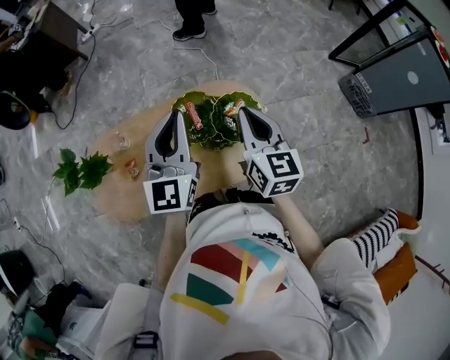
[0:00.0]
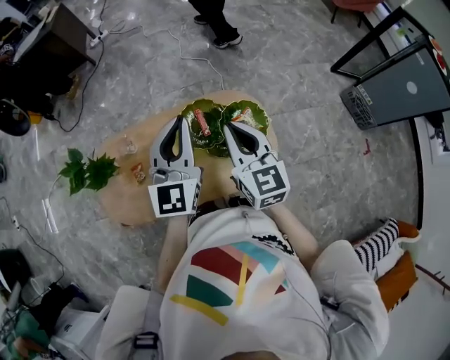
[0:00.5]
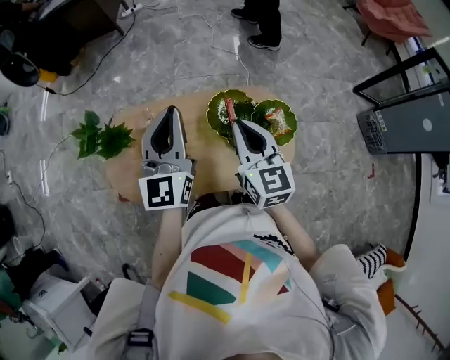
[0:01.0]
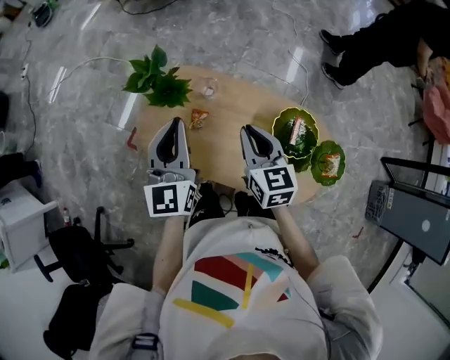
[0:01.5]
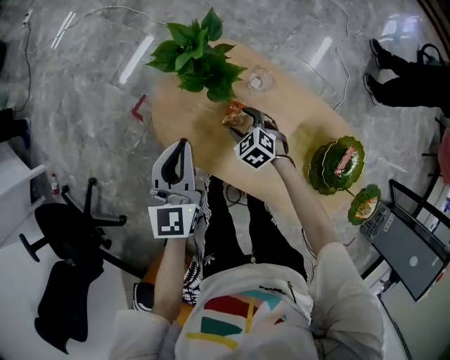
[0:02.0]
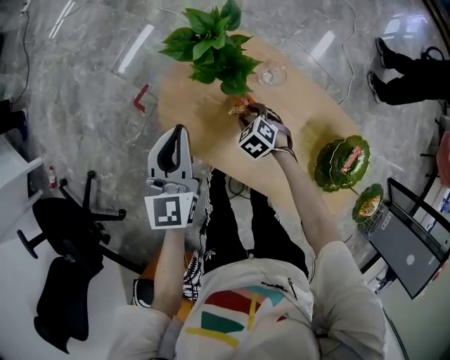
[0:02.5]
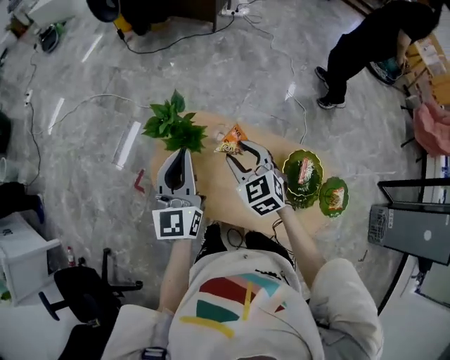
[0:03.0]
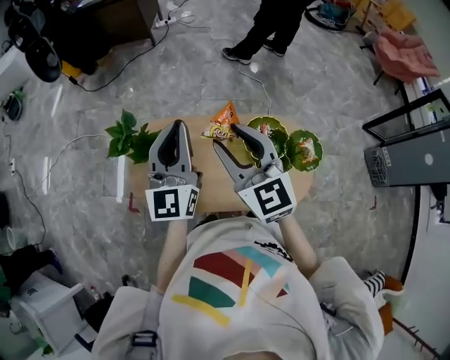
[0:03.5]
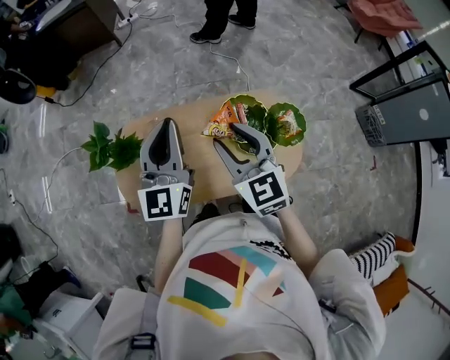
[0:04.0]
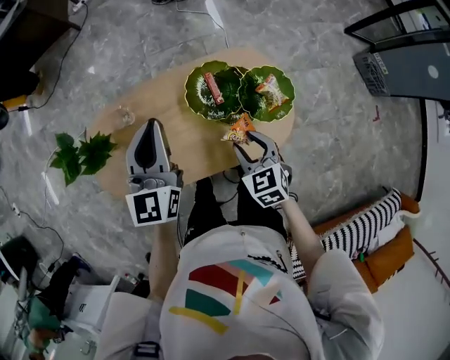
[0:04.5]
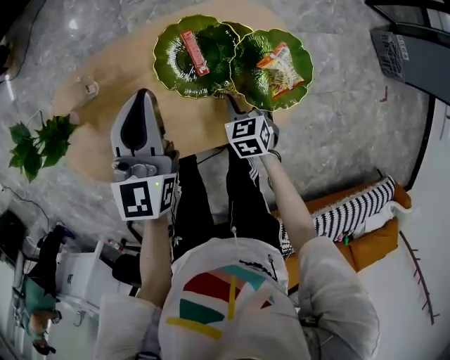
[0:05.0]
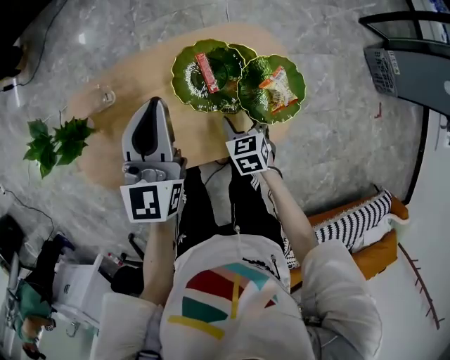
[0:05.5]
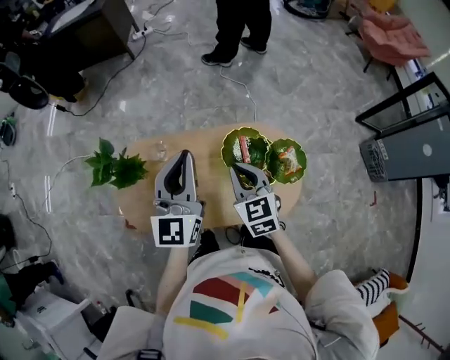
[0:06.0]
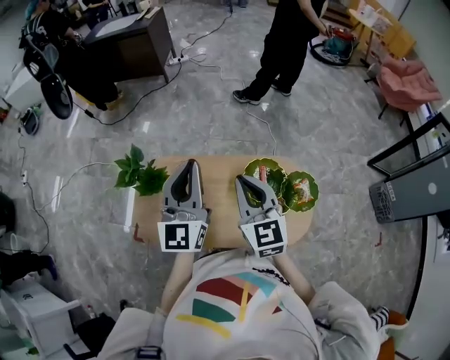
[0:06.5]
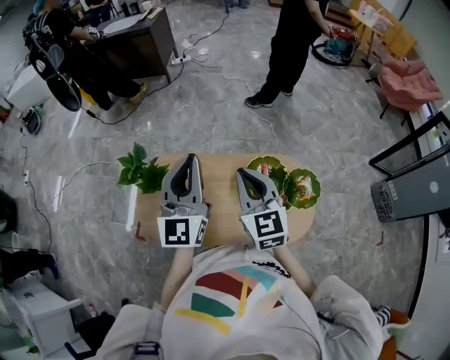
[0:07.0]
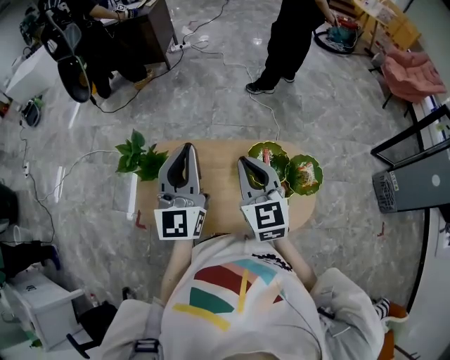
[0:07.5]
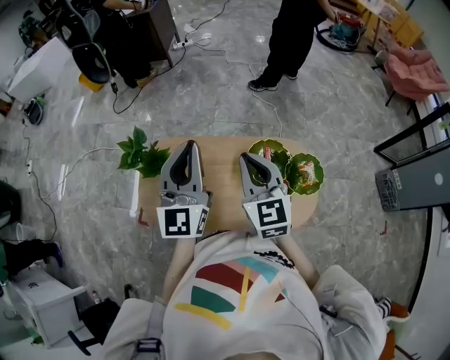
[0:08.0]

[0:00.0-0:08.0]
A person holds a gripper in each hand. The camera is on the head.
0:00.0 to 0:02.0: The two grippers travel together, about 50 cm. The left gripper rotates approximately 50 degrees. The right gripper angles its fingers downward, by some 50 degrees, and opens its fingers.
0:02.0 to 0:04.0: The left gripper shifts by some 40 cm, and swivels about 40 degrees. Meanwhile the right gripper goes approximately 40 cm upward, and angles its fingers upward, by approximately 40 degrees.
0:04.0 to 0:06.0: The left gripper goes downward and returns, approximately 20 cm each way. The right gripper travels downward and back again, some 40 cm each way, and closes up.
0:06.0 to 0:08.0: The right gripper travels upward and to the left by about 15 cm, while the left gripper shifts approximately 10 cm to the left and upward.

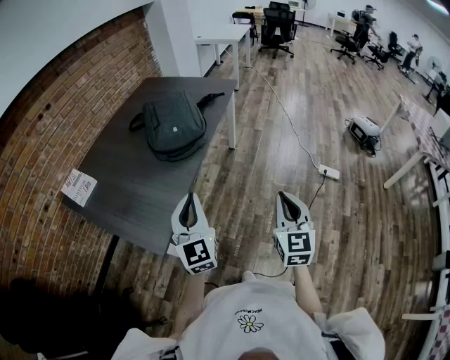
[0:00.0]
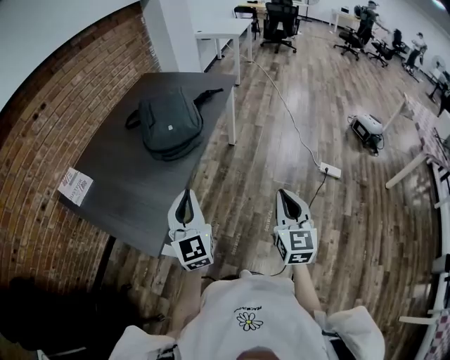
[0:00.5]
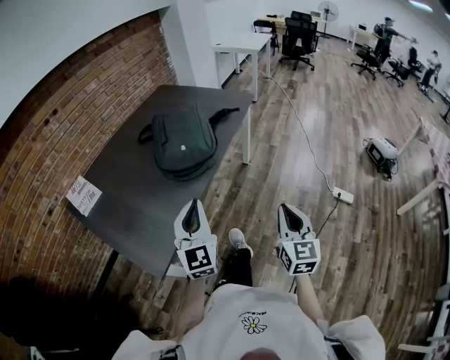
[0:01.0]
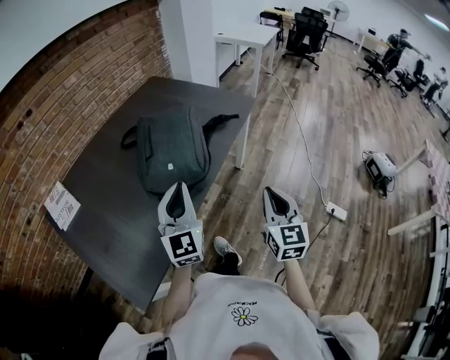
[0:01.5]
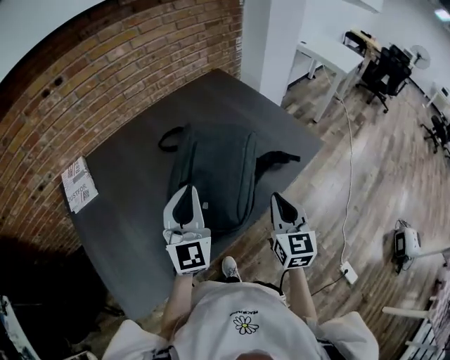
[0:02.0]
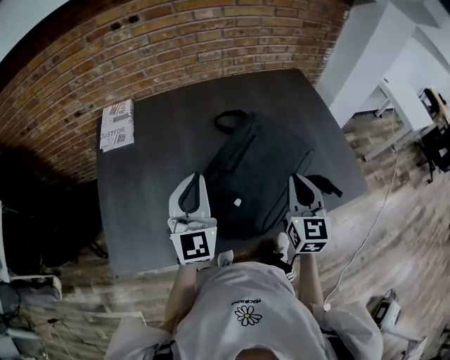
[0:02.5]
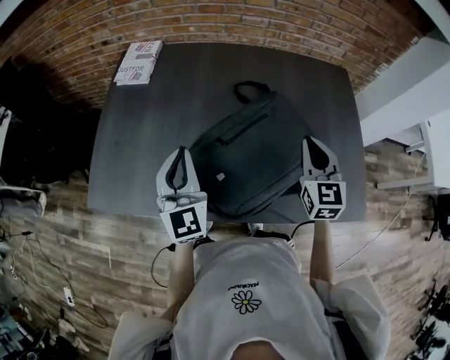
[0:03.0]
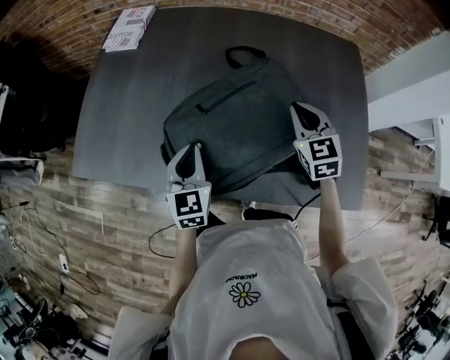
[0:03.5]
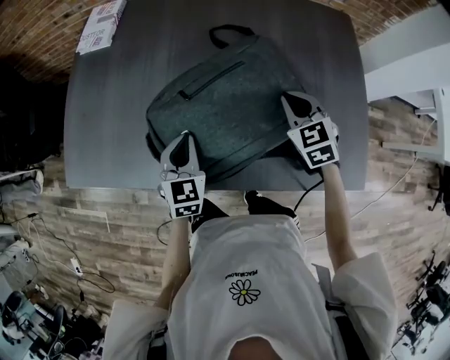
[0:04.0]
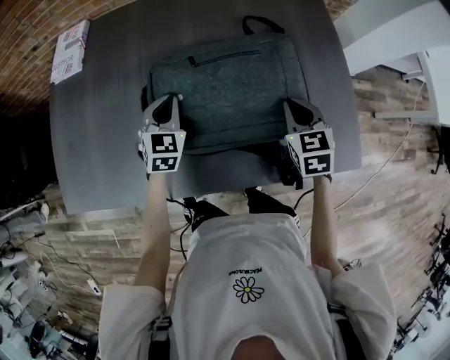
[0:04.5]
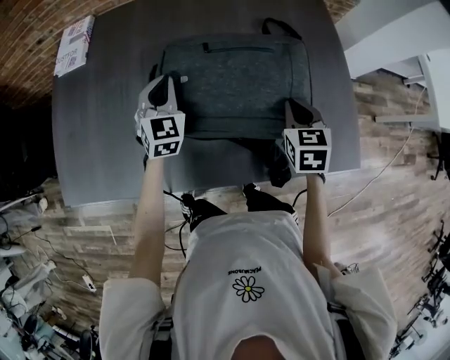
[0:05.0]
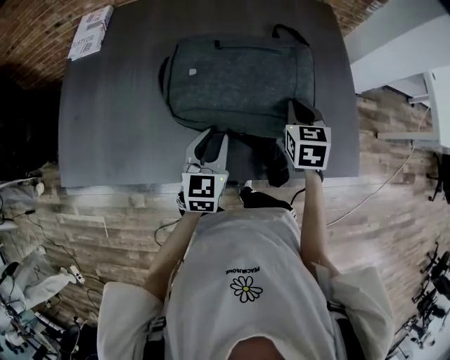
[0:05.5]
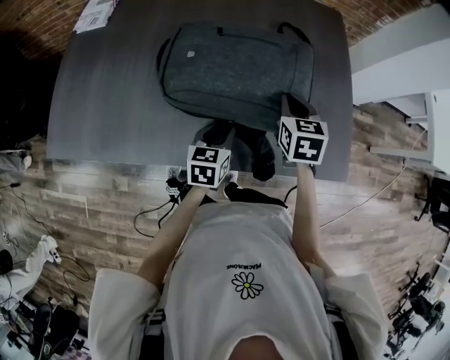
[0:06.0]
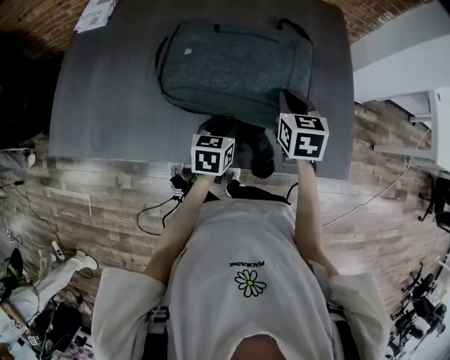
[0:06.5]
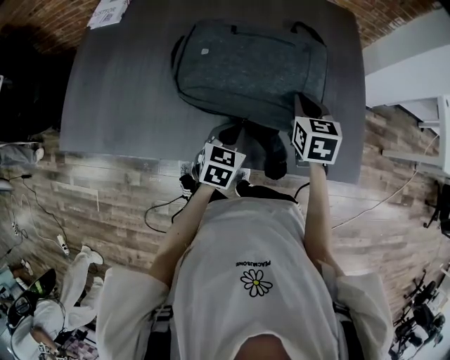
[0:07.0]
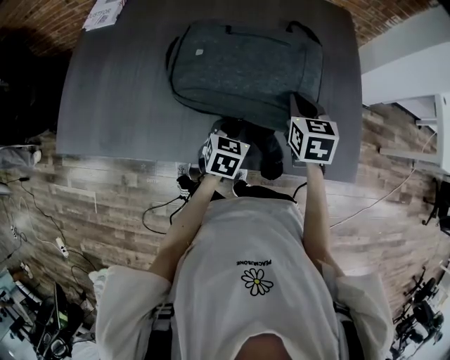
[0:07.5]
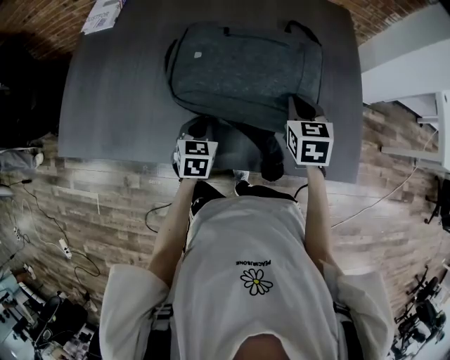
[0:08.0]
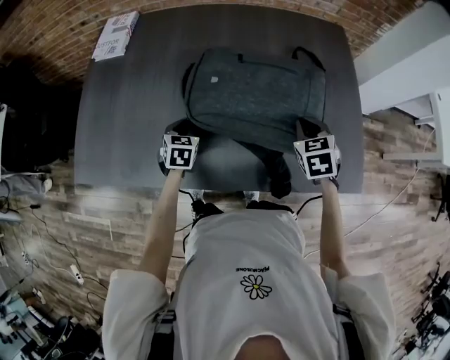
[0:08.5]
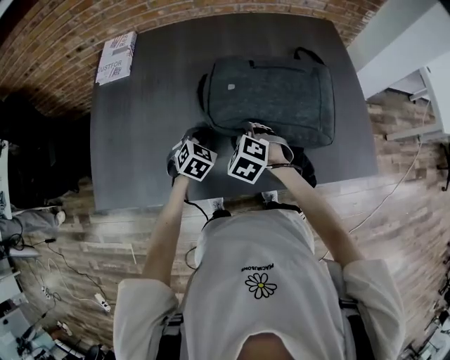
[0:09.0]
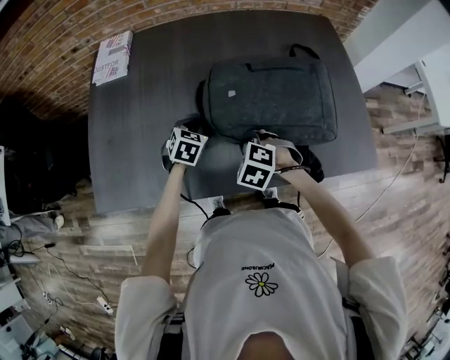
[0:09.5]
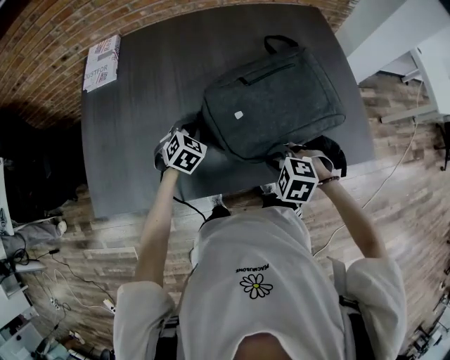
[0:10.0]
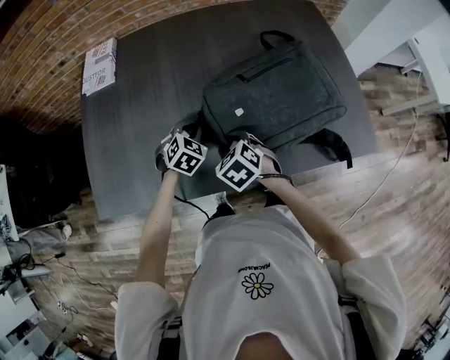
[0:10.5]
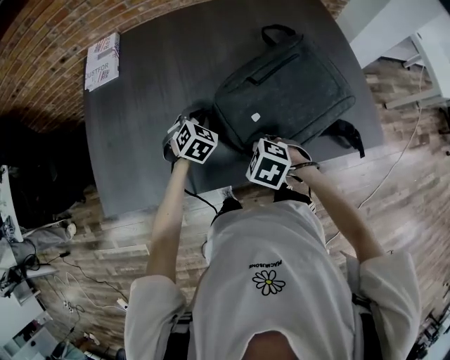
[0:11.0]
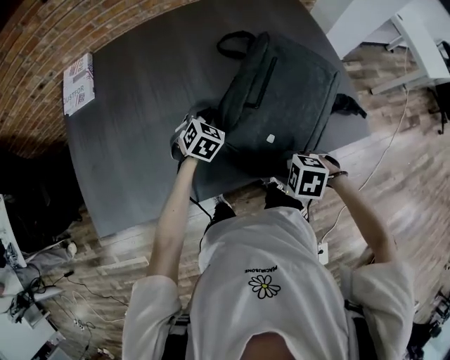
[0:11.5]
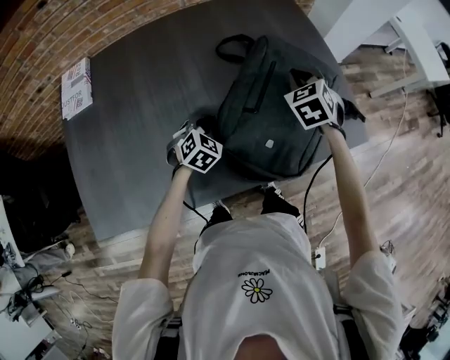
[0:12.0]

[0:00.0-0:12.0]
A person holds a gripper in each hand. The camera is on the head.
0:00.0 to 0:02.0: Both grippers are carried approximately 50 cm. The right gripper rotates about 30 degrees. The left gripper turns by some 20 degrees.
0:02.0 to 0:04.0: The right gripper ends up roughly 30 cm from where it was, and swivels roughly 70 degrees. Meanwhile the left gripper goes some 20 cm downward, and angles its fingers downward, by roughly 30 degrees.
0:04.0 to 0:06.0: The left gripper moves to the right, some 15 cm, turns by roughly 30 degrees, and opens. Meanwhile the right gripper heads to the right, covering some 10 cm, and turns by about 30 degrees.
0:06.0 to 0:08.0: The left gripper moves to the left, approximately 10 cm, and closes up.
0:08.0 to 0:10.0: The left gripper moves to the left and forward, about 15 cm, and rotates about 40 degrees. The right gripper shifts some 25 cm to the left and backward, and points its fingers roughly 30 degrees further downward.
0:10.0 to 0:12.0: The left gripper ends up some 15 cm from where it was; the right gripper shifts by approximately 30 cm, changes its angle by approximately 60 degrees, and opens, then closes once more.

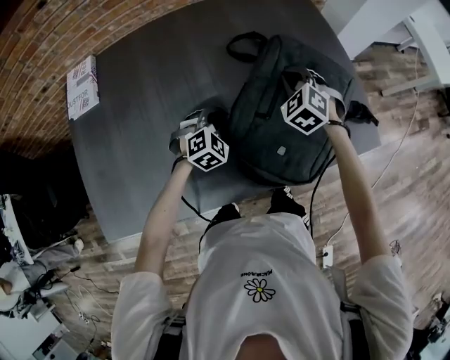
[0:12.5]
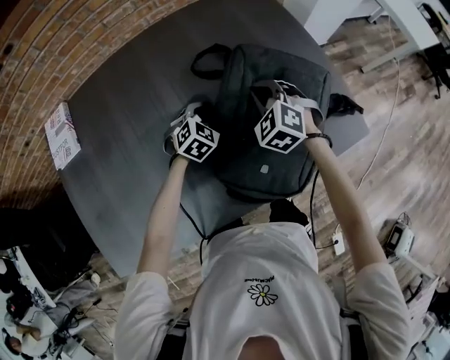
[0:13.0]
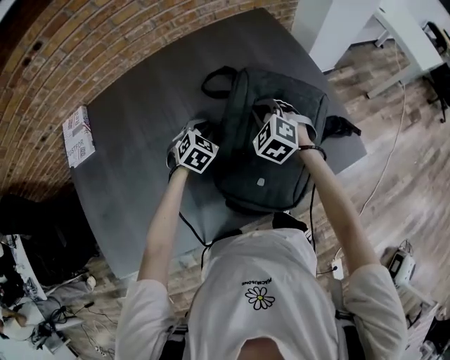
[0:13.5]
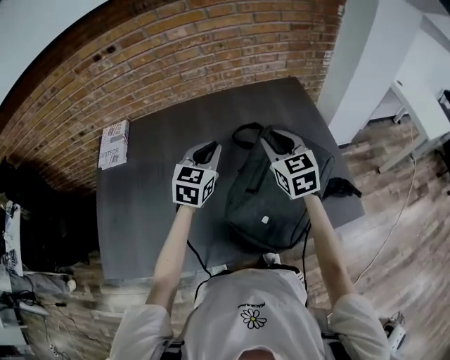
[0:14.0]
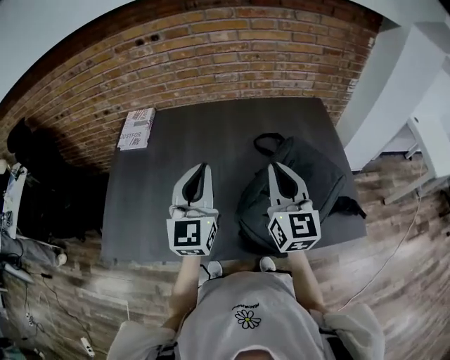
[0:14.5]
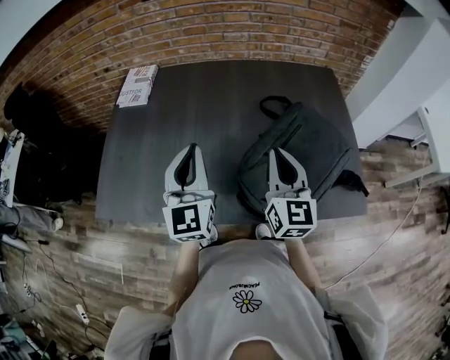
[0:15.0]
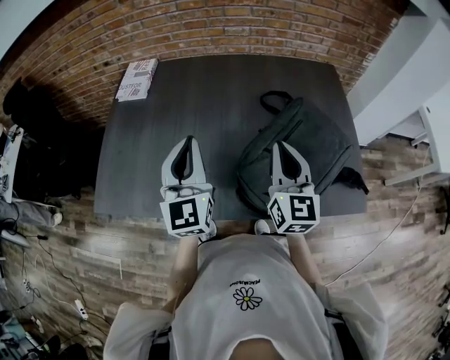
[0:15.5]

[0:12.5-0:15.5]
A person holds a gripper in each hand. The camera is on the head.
0:12.5 to 0:14.0: The grippers both shift upward by some 20 cm. The left gripper turns by roughly 50 degrees. Meanwhile the right gripper changes its angle by approximately 50 degrees, and opens.
0:14.0 to 0:15.5: The left gripper goes roughly 25 cm backward, to the left and upward, and turns by about 40 degrees, while the right gripper is displaced backward and to the left by about 15 cm, and closes up.

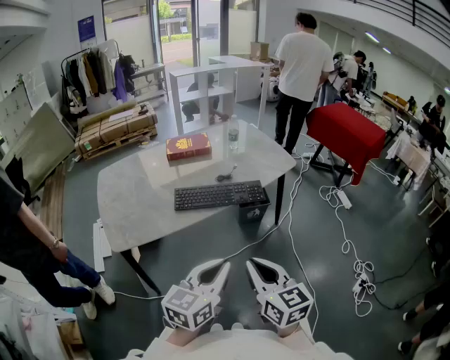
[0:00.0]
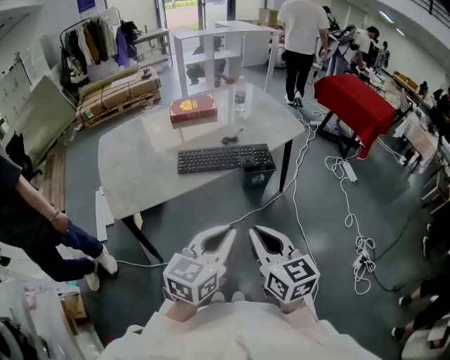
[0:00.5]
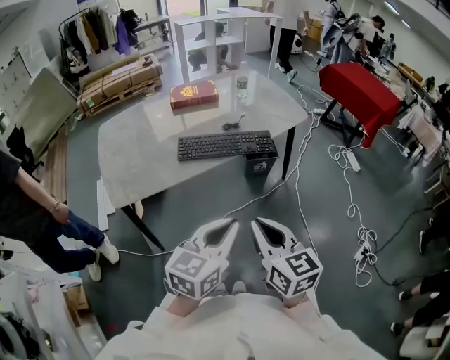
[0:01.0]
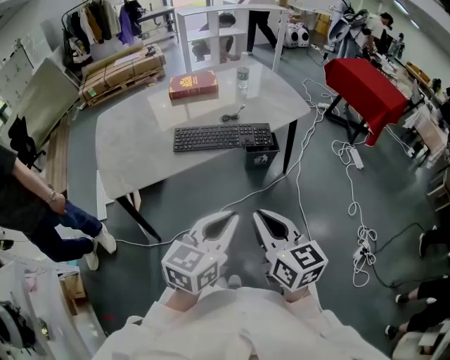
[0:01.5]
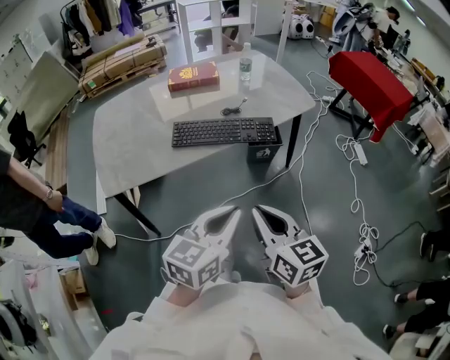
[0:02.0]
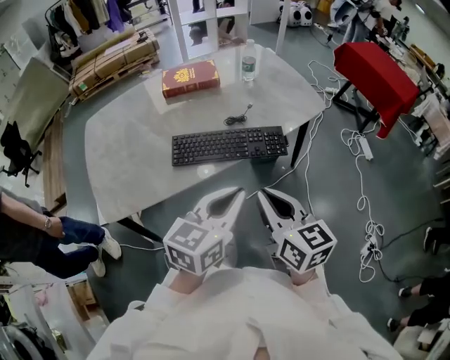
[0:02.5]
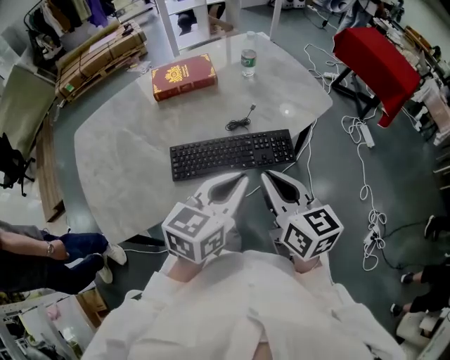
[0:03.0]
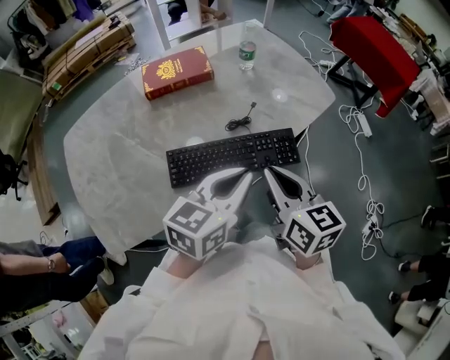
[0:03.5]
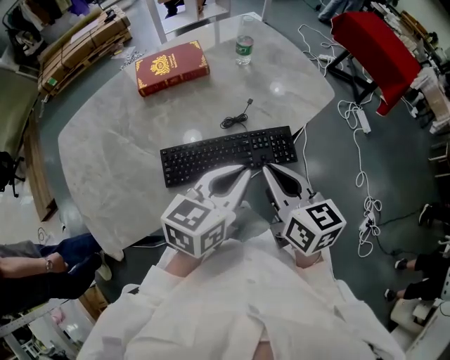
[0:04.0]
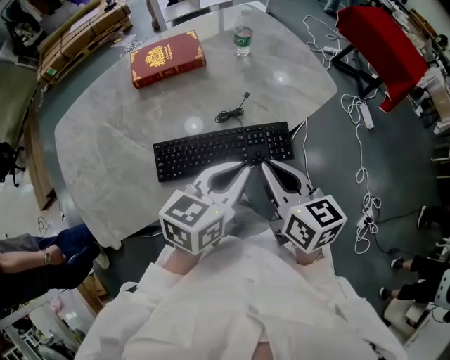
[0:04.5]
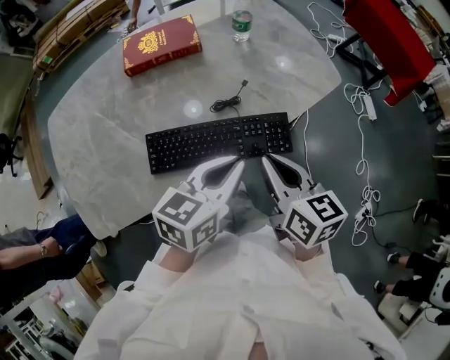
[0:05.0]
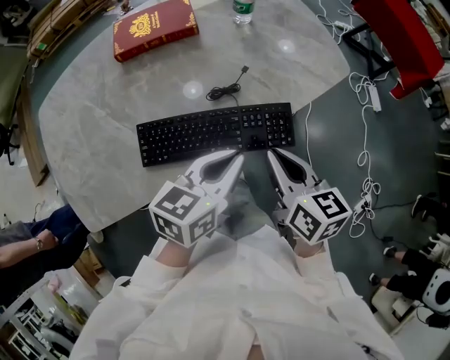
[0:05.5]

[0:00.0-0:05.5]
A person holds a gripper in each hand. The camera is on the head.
0:00.0 to 0:02.0: Both grippers travel together forward, approximately 5 cm.
0:02.0 to 0:03.5: Both grippers move forward, about 30 cm.
0:03.5 to 0:05.5: The right gripper heads downward, forward and to the right, covering roughly 10 cm; the left gripper is displaced downward and forward by roughly 10 cm.
